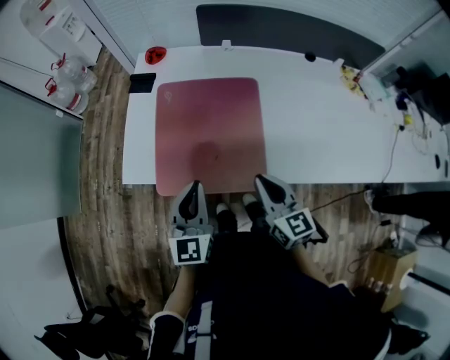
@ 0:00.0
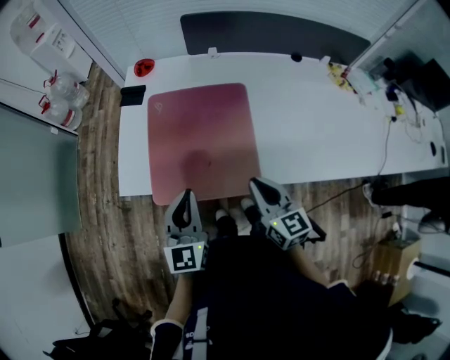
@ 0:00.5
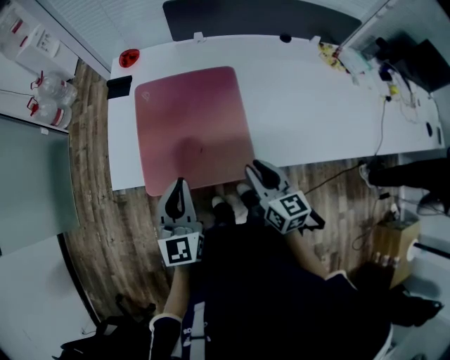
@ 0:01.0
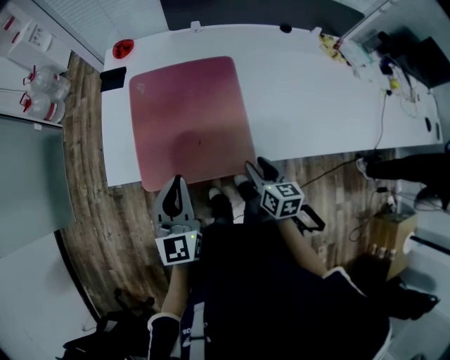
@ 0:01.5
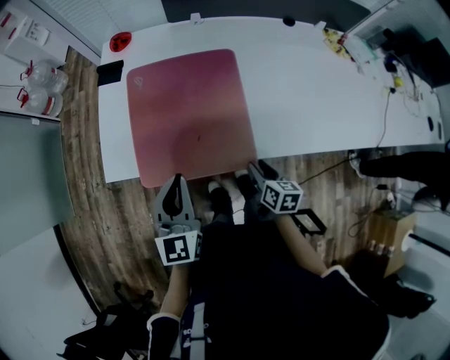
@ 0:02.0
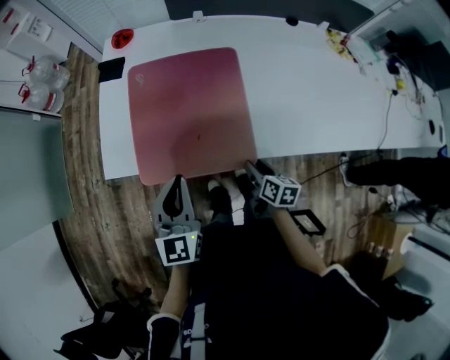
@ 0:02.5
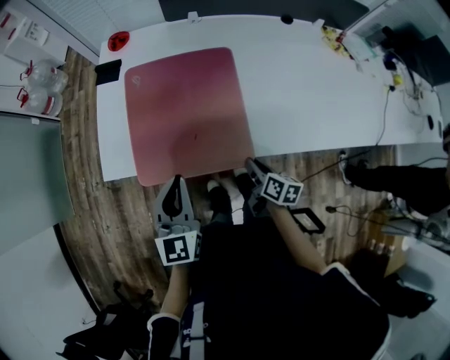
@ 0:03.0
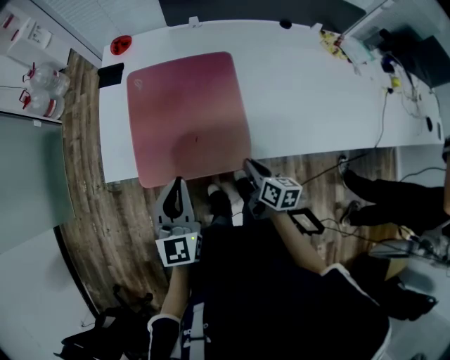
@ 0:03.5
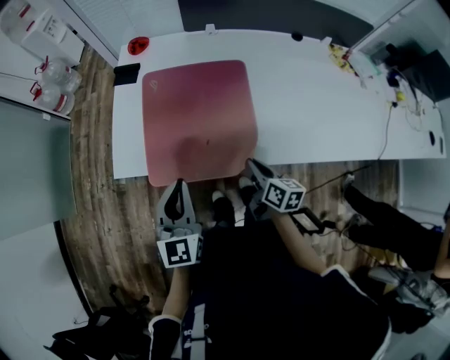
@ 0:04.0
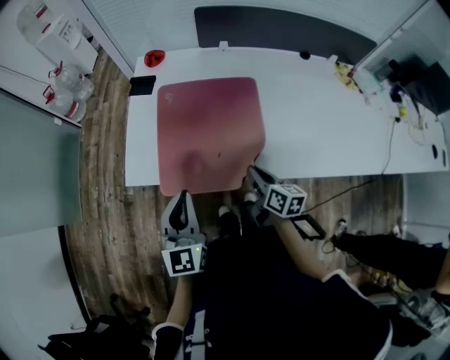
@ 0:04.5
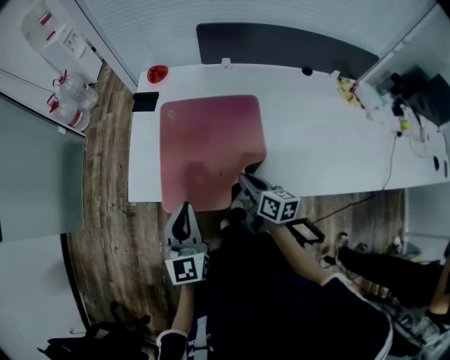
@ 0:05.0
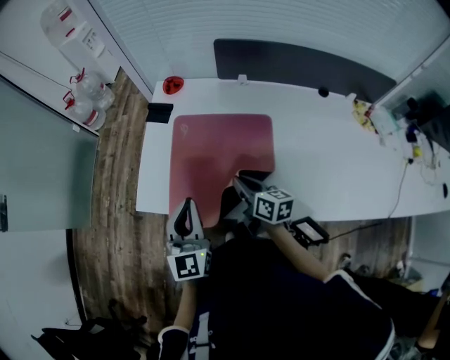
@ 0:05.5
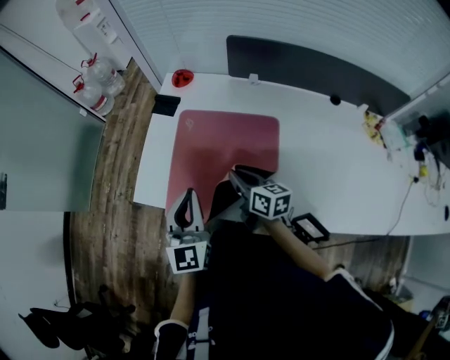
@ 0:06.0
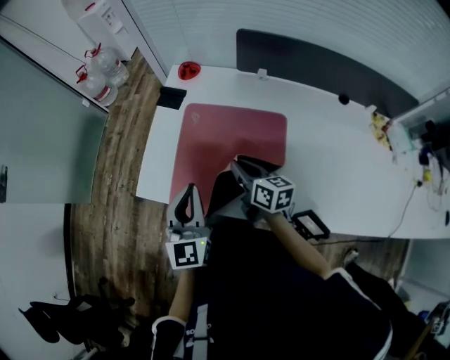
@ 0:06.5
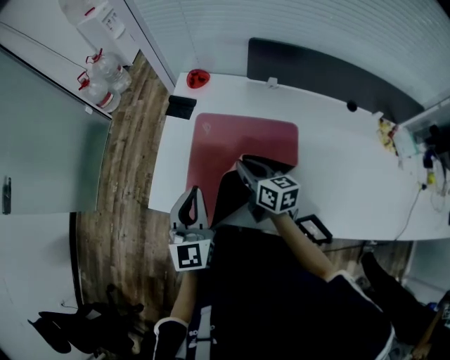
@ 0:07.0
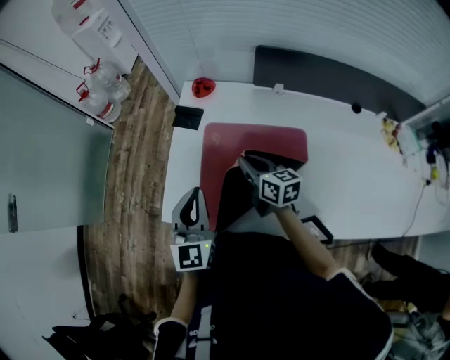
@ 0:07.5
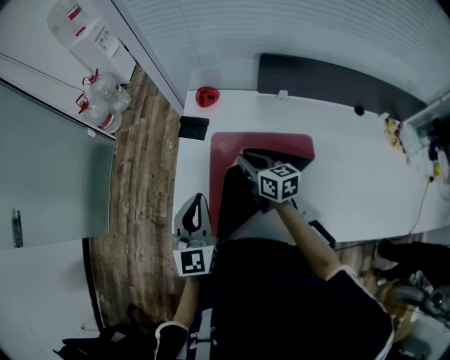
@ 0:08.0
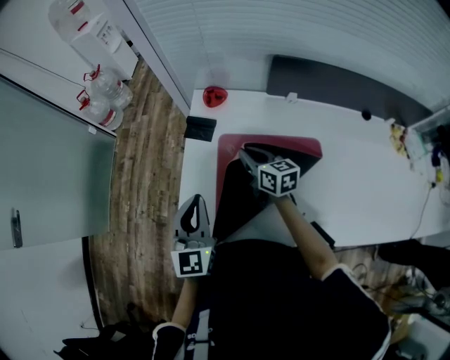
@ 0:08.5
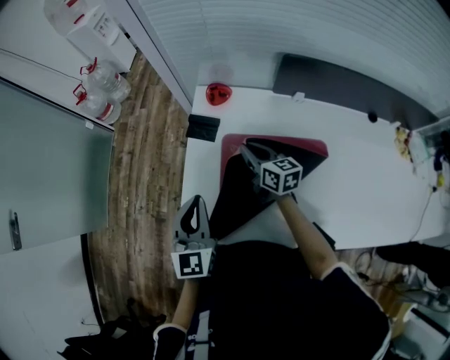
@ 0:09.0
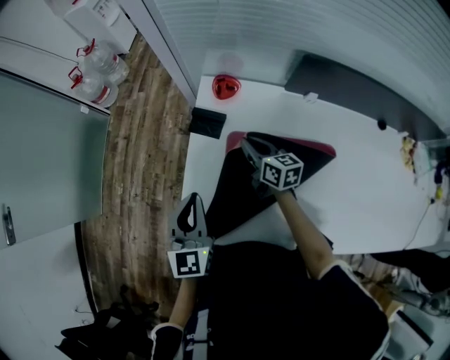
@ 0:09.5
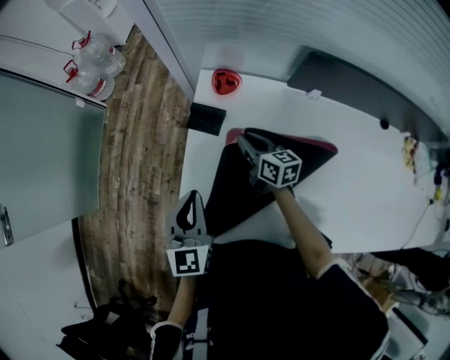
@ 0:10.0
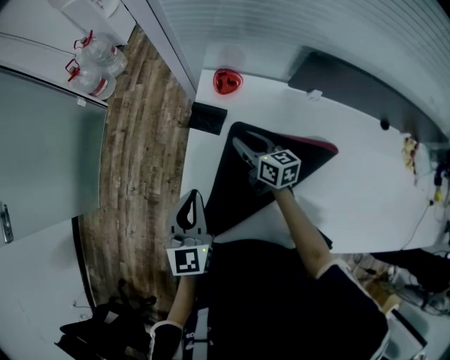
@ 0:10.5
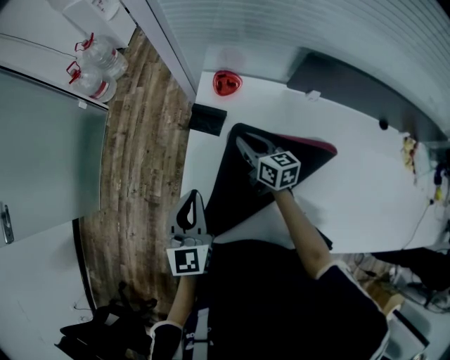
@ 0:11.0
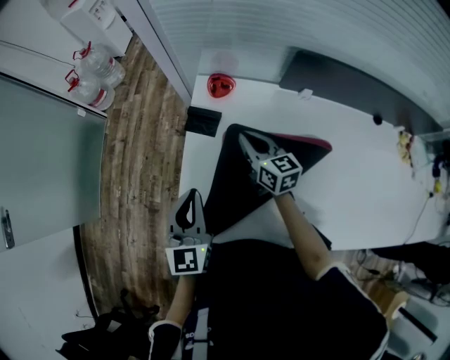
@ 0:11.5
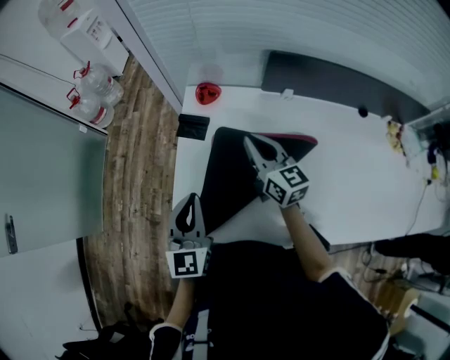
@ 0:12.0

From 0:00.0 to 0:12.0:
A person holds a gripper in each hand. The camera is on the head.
From 0:00.0 to 0:02.0: The right gripper heads downward, covering some 15 cm, rotates roughly 40 degrees, and opens its fingers.
From 0:02.0 to 0:04.0: The right gripper ends up roughly 5 cm from where it was, and closes.
From 0:04.0 to 0:06.0: The right gripper travels forward by approximately 20 cm, and swivels roughly 30 degrees, while the left gripper moves forward, about 10 cm.
From 0:06.0 to 0:08.0: The left gripper travels forward and to the left by approximately 15 cm; the right gripper shifts about 15 cm forward.
From 0:08.0 to 0:10.0: Both grippers move forward and downward, approximately 10 cm.
From 0:10.0 to 0:12.0: The right gripper moves upward and backward, approximately 15 cm, turns by about 30 degrees, and opens, then closes again. The left gripper travels backward by some 5 cm.

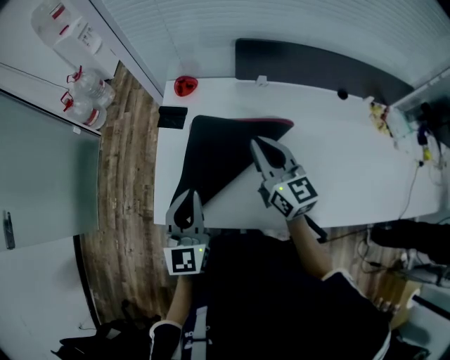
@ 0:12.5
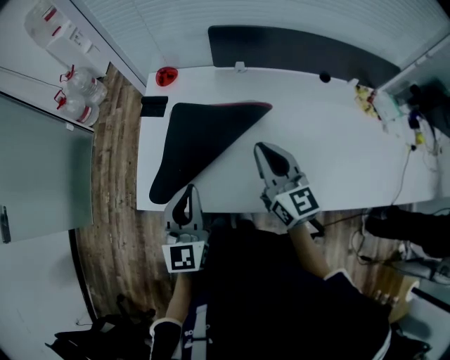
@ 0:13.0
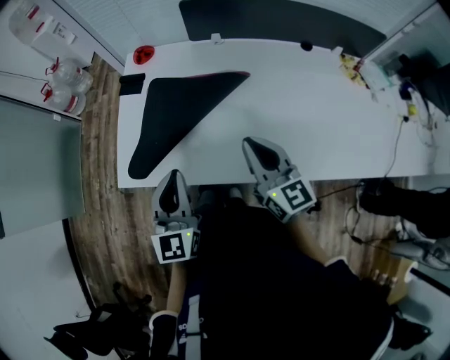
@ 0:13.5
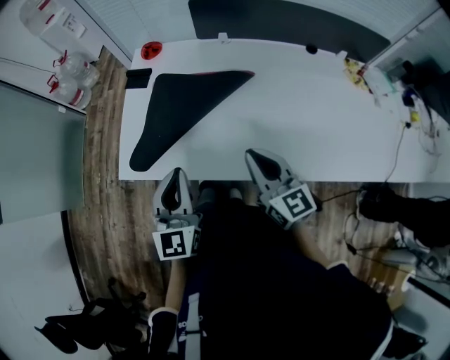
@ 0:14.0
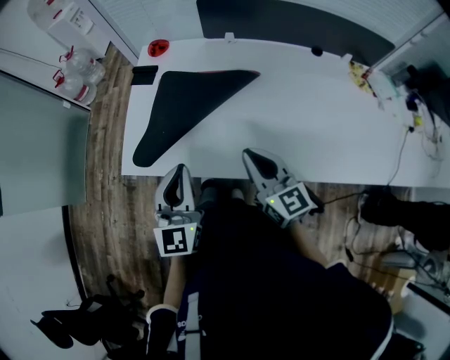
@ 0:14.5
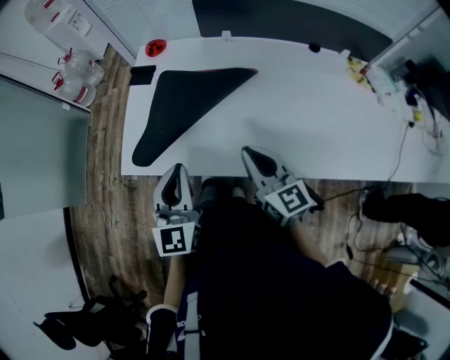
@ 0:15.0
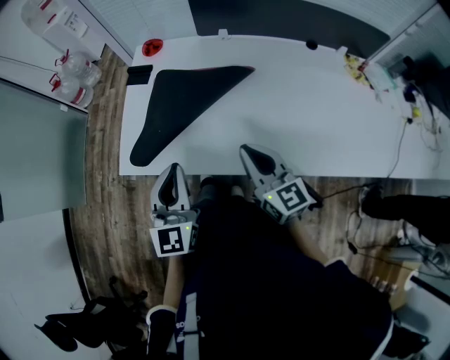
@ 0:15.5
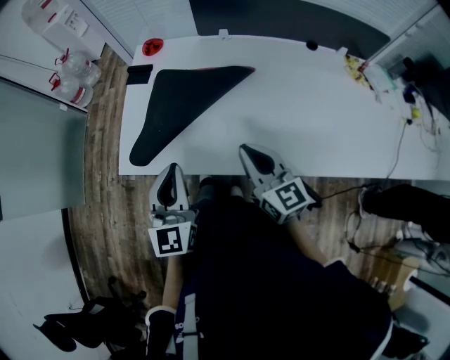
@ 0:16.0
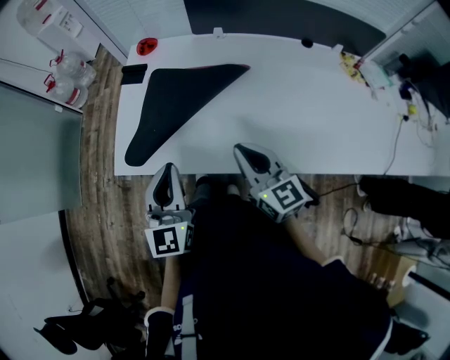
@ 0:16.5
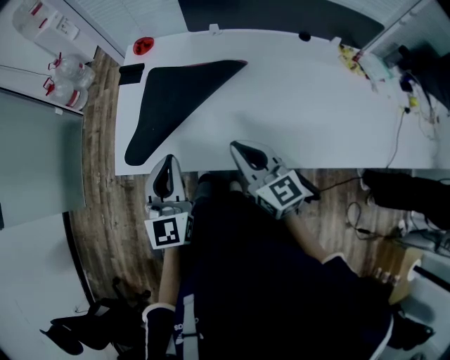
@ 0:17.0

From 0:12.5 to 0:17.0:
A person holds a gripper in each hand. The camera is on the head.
From 0:12.5 to 0:14.5: The right gripper goes roughly 20 cm backward. Meanwhile the left gripper travels backward and to the right by approximately 15 cm.
From 0:14.5 to 0:17.0: There are only small adjustments of the grippers.

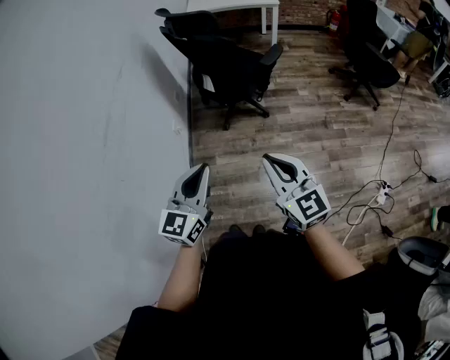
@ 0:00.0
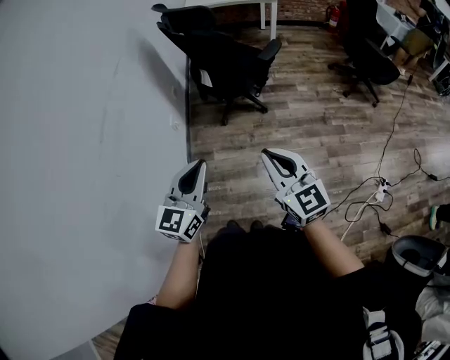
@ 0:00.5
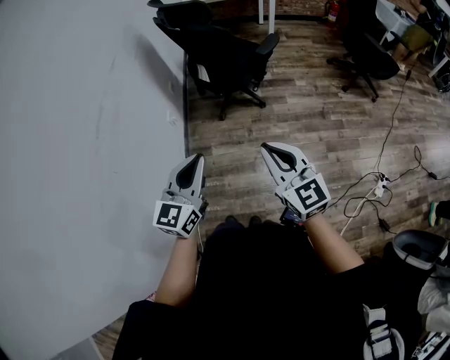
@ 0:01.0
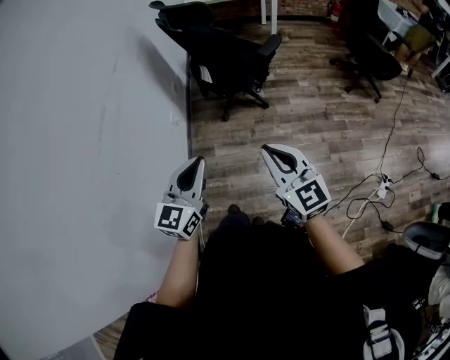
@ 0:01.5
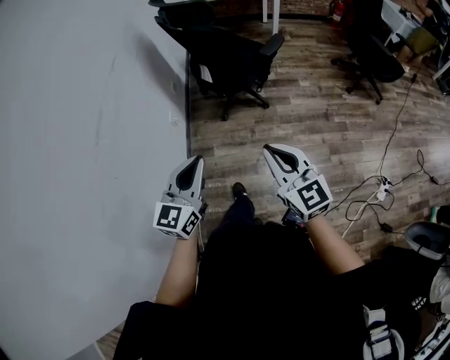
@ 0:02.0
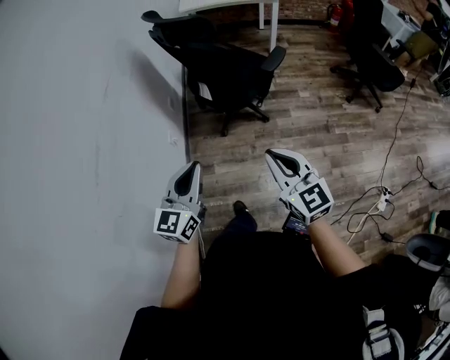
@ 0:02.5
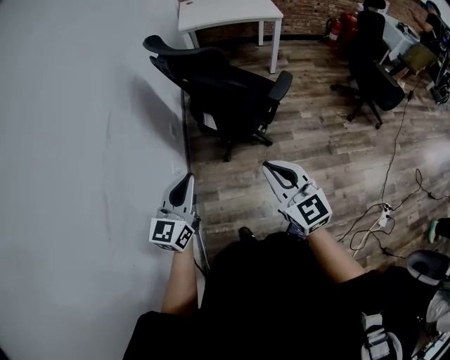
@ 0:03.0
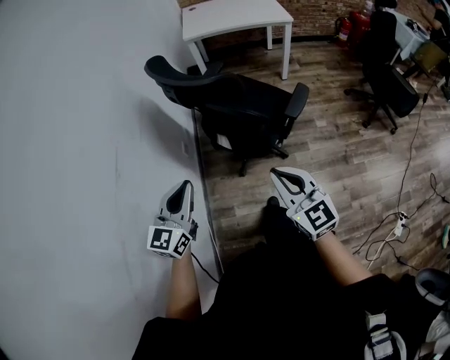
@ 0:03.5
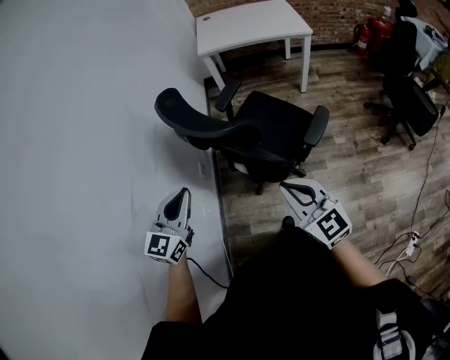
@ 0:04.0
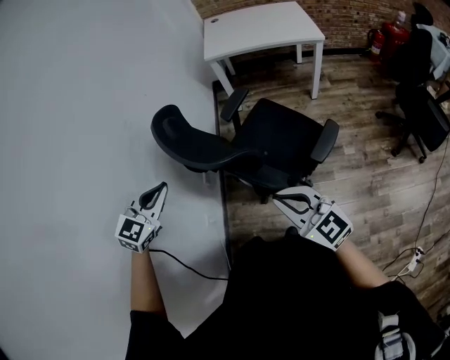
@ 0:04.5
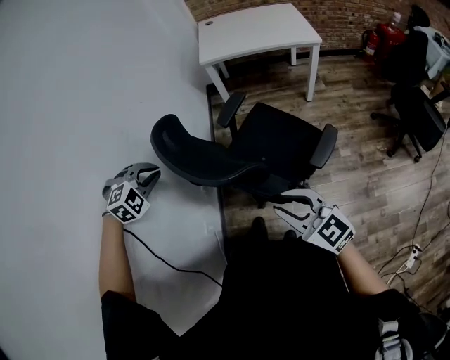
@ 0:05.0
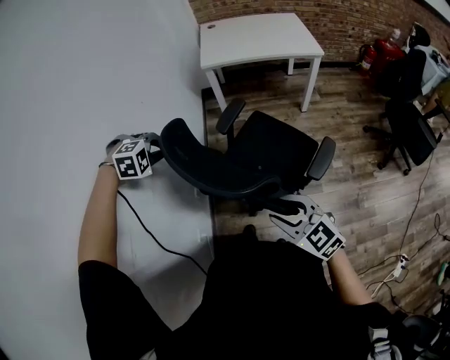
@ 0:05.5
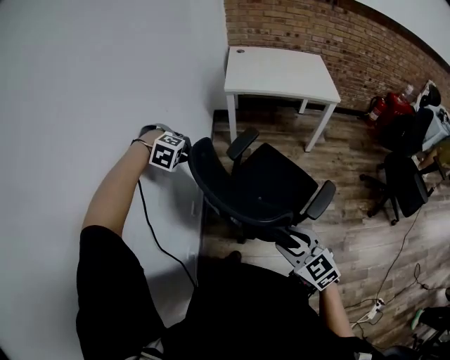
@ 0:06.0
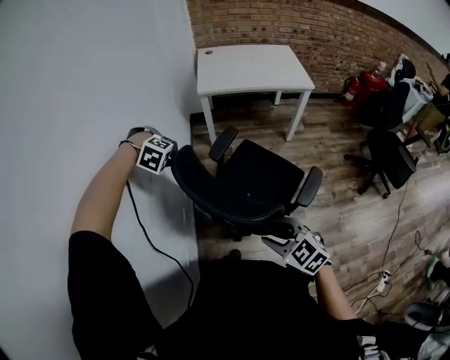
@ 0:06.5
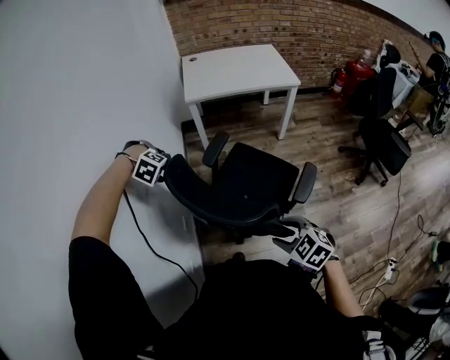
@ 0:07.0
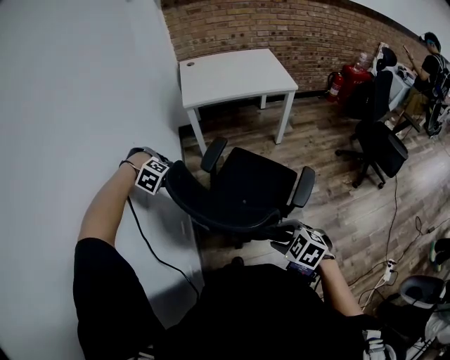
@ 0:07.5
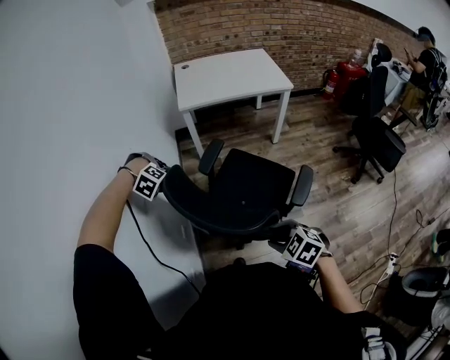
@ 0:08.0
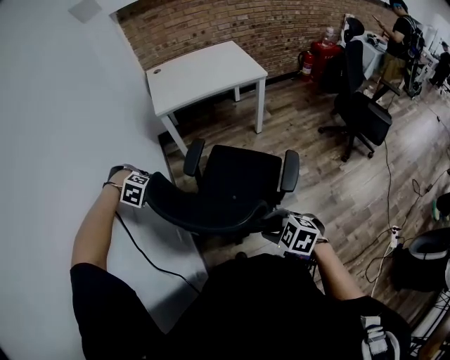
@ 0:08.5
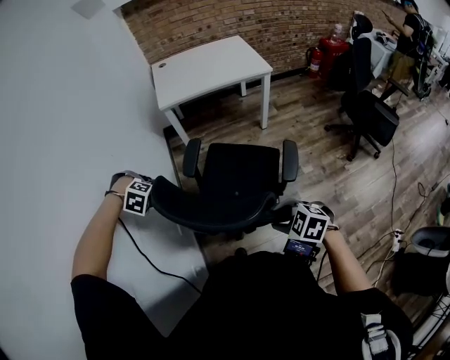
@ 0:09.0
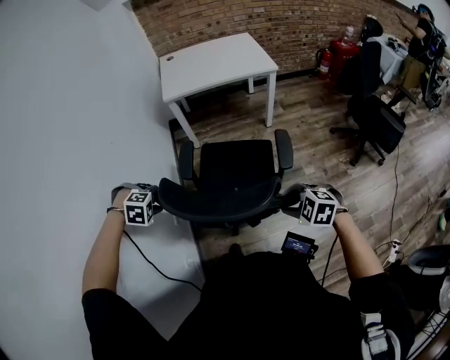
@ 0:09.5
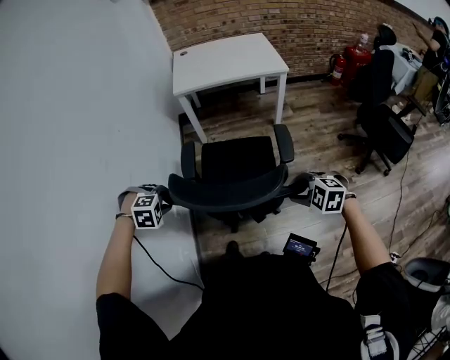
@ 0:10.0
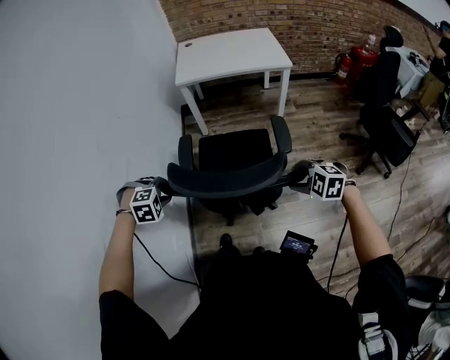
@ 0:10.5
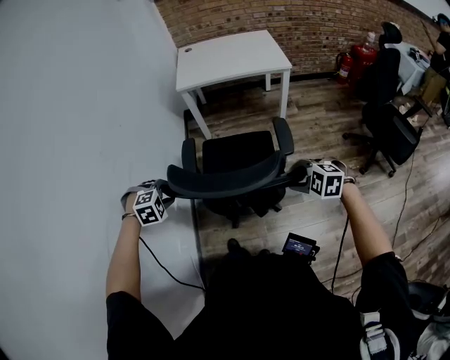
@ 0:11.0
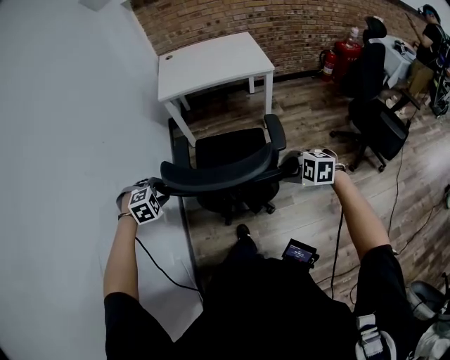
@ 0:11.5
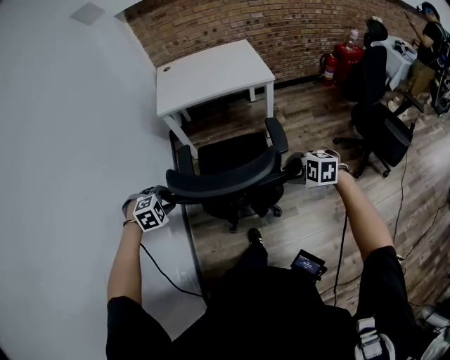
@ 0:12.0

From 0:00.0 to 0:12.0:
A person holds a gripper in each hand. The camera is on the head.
From 0:00.0 to 0:02.0: There are only small adjustments of the grippers.
From 0:02.0 to 0:04.0: The two grippers travel together, forward, some 50 cm.
From 0:04.0 to 0:06.0: The left gripper ends up roughly 35 cm from where it was, and points its fingers some 70 degrees further downward. Meanwhile the right gripper shifts by roughly 15 cm, swivels approximately 20 degrees, and opens.
From 0:06.0 to 0:08.0: The right gripper turns by roughly 20 degrees; the left gripper changes place by some 5 cm, changes its angle by some 20 degrees, and opens up.
From 0:08.0 to 0:10.0: The left gripper shifts by approximately 20 cm, and changes its angle by approximately 30 degrees. The right gripper changes place by roughly 20 cm, and swivels about 30 degrees.
From 0:10.0 to 0:12.0: The right gripper ends up approximately 15 cm from where it was; the left gripper changes place by some 15 cm.
